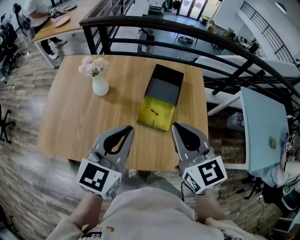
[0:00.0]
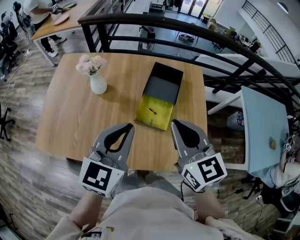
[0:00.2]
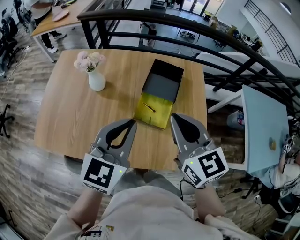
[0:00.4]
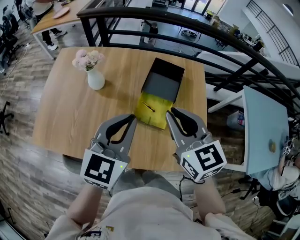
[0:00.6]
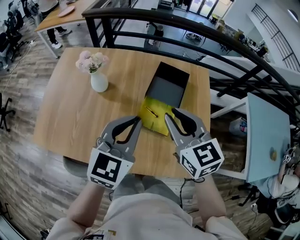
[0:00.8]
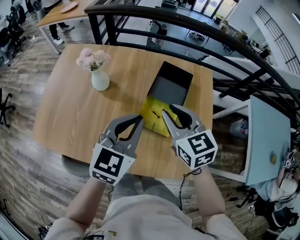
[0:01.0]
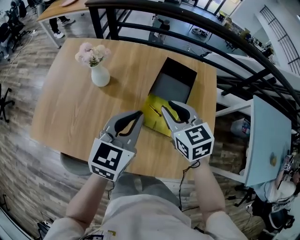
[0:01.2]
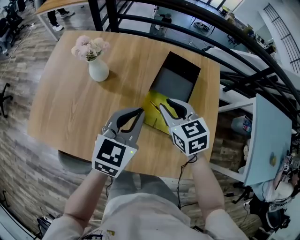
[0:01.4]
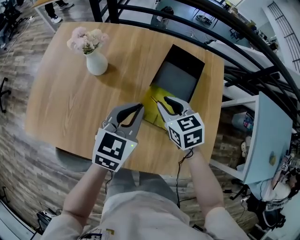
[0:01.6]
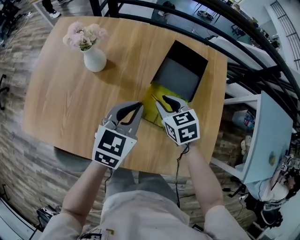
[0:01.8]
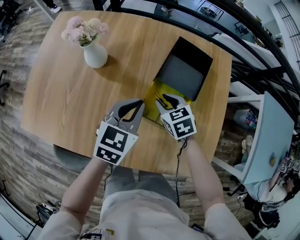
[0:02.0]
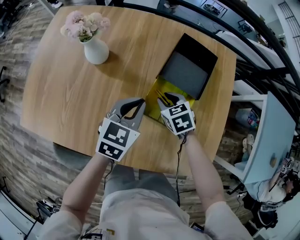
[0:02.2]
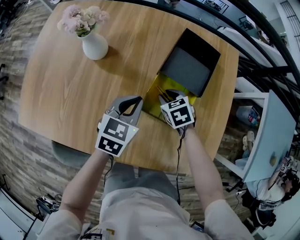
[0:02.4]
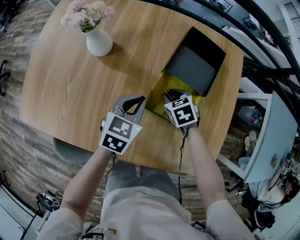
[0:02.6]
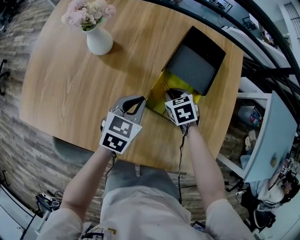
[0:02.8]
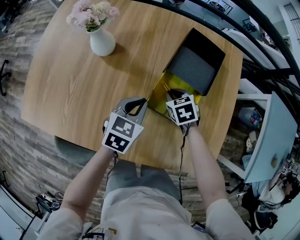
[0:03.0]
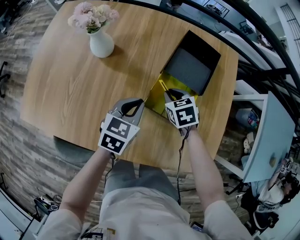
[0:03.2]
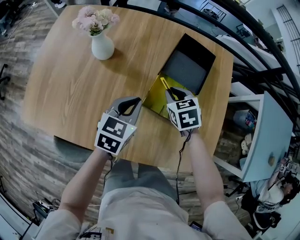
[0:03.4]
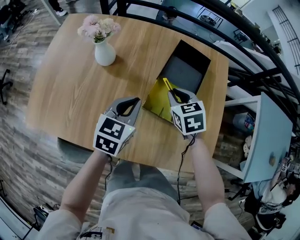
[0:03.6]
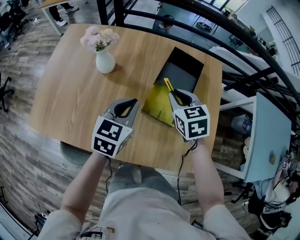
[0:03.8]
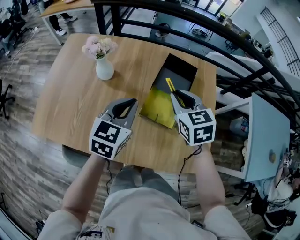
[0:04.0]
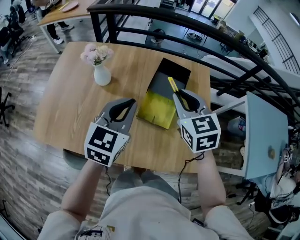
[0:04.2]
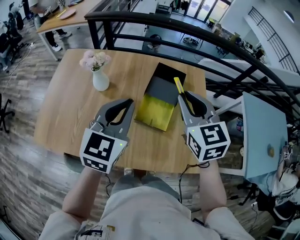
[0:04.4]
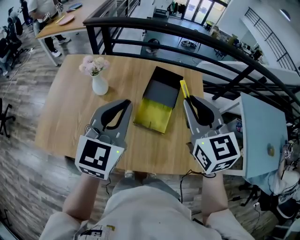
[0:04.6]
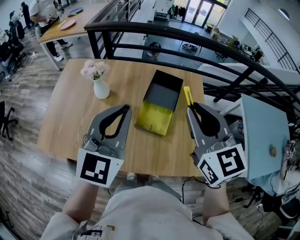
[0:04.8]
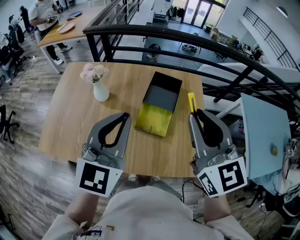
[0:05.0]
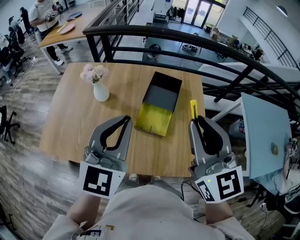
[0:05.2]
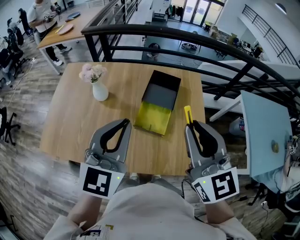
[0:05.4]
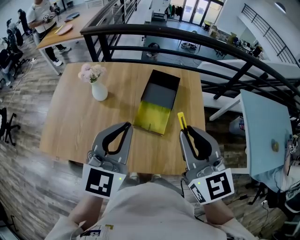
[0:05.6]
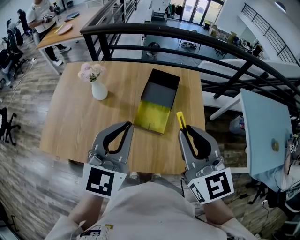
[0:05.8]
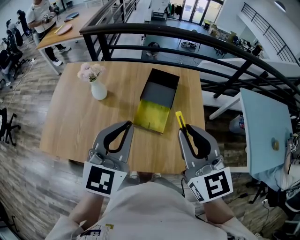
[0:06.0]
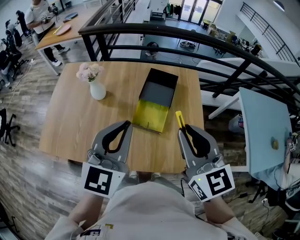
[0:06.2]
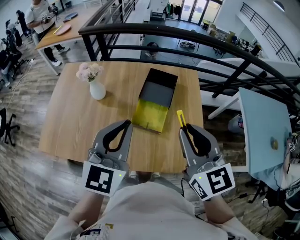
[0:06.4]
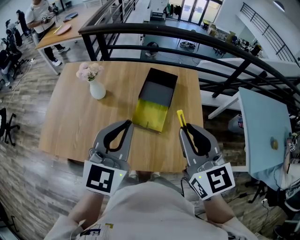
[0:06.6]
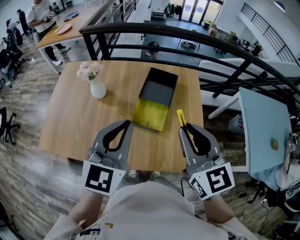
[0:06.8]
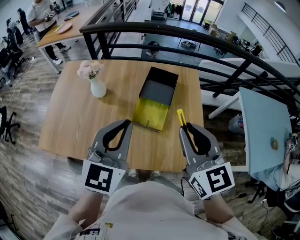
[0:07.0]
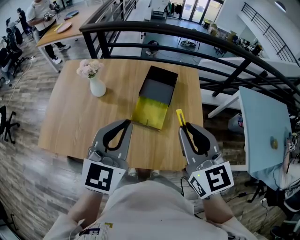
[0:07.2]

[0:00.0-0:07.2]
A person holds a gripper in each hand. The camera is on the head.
0:00.0 to 0:01.4: The left gripper travels forward and downward by some 20 cm, while the right gripper shifts approximately 25 cm downward and forward, swivels approximately 20 degrees, and opens its fingers.
0:01.4 to 0:02.8: The grippers both shift downward by some 20 cm. The left gripper turns by roughly 20 degrees, while the right gripper changes its angle by roughly 30 degrees.
0:02.8 to 0:04.4: Both grippers travel together upward, some 35 cm. The right gripper points its fingers approximately 40 degrees further upward. The left gripper swivels some 30 degrees.
0:04.4 to 0:05.8: The right gripper shifts about 15 cm backward and upward. The left gripper shifts about 10 cm backward.
0:05.8 to 0:07.2: The grippers stay close to where they were, moving slightly.

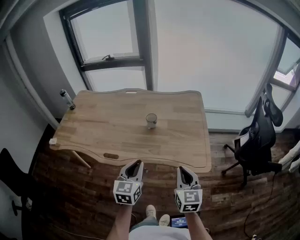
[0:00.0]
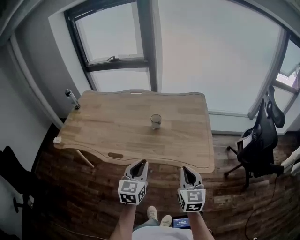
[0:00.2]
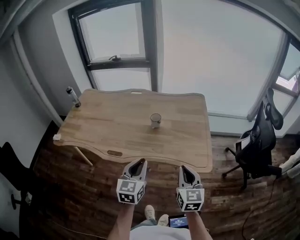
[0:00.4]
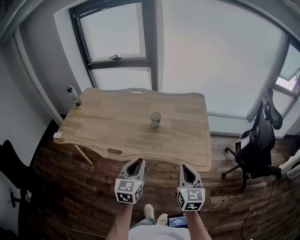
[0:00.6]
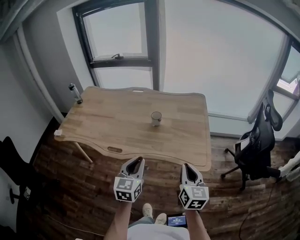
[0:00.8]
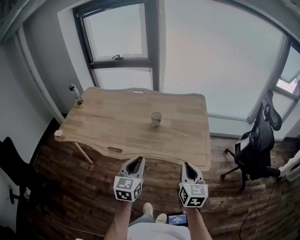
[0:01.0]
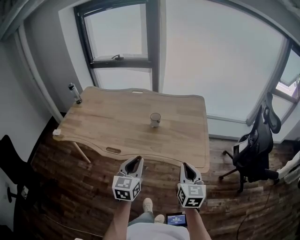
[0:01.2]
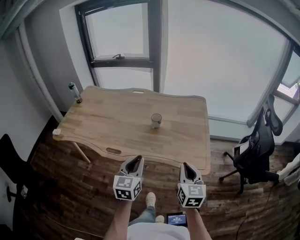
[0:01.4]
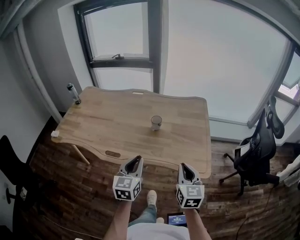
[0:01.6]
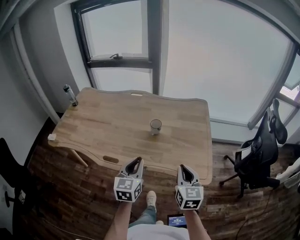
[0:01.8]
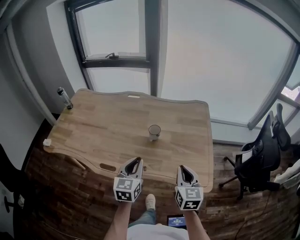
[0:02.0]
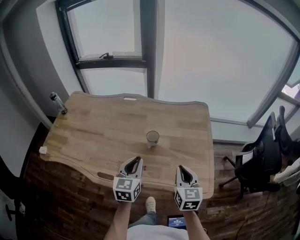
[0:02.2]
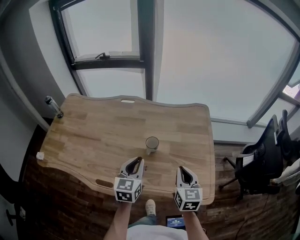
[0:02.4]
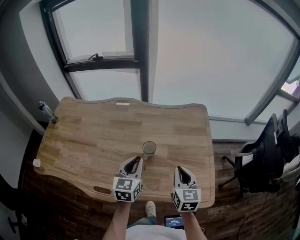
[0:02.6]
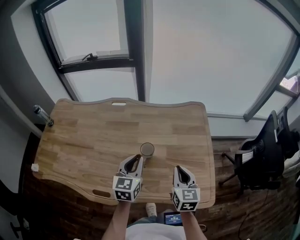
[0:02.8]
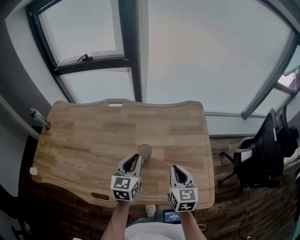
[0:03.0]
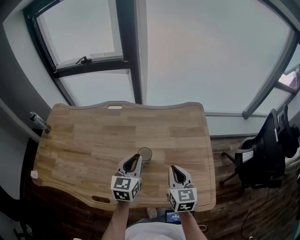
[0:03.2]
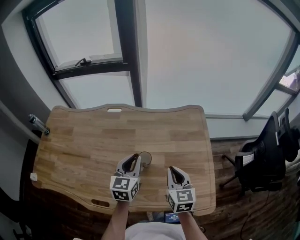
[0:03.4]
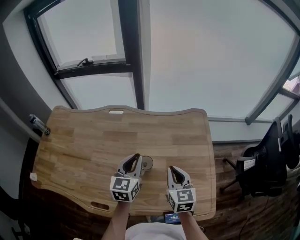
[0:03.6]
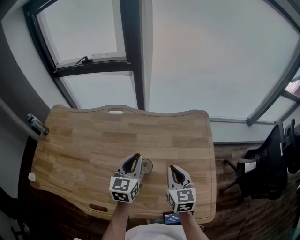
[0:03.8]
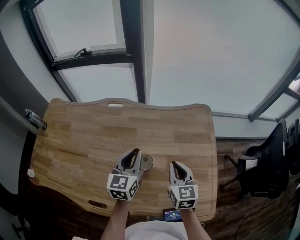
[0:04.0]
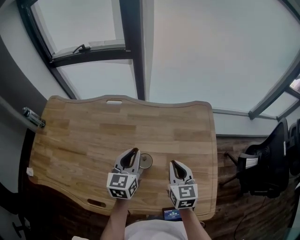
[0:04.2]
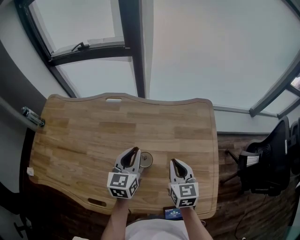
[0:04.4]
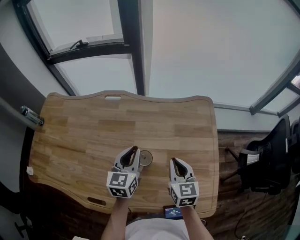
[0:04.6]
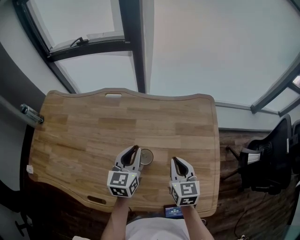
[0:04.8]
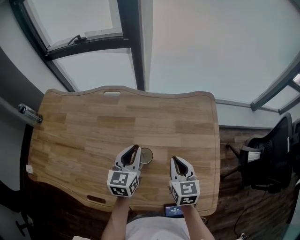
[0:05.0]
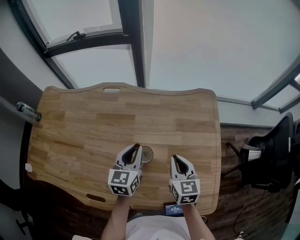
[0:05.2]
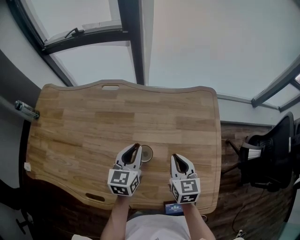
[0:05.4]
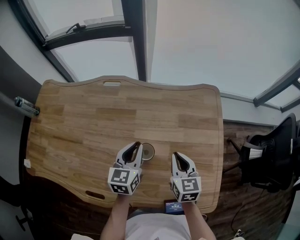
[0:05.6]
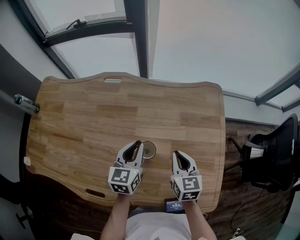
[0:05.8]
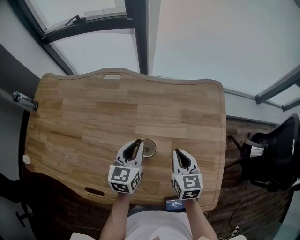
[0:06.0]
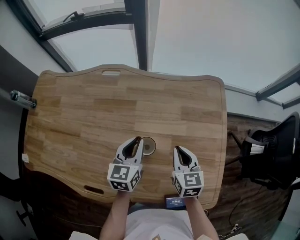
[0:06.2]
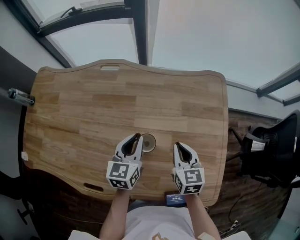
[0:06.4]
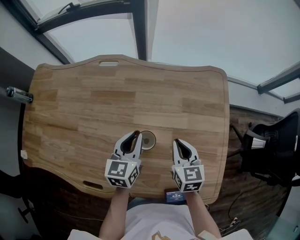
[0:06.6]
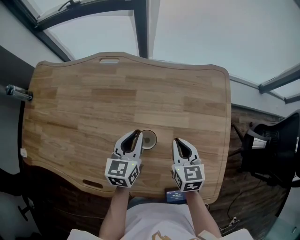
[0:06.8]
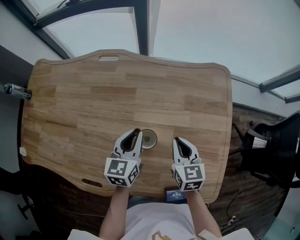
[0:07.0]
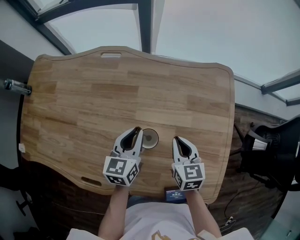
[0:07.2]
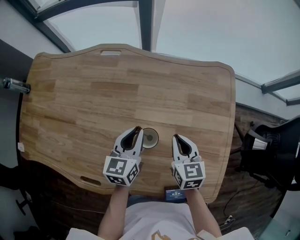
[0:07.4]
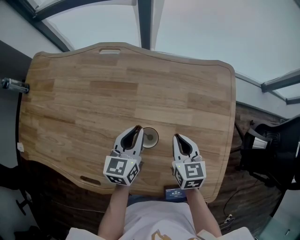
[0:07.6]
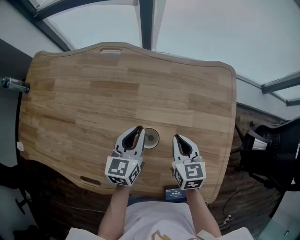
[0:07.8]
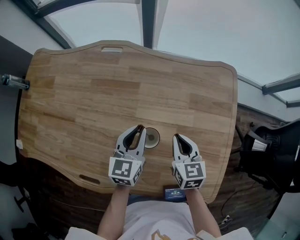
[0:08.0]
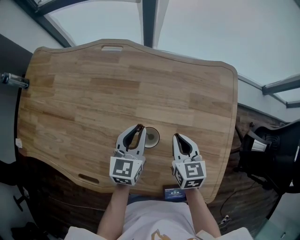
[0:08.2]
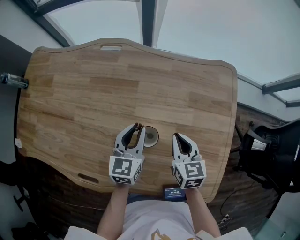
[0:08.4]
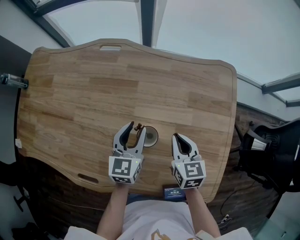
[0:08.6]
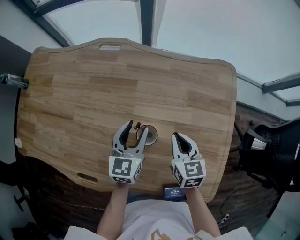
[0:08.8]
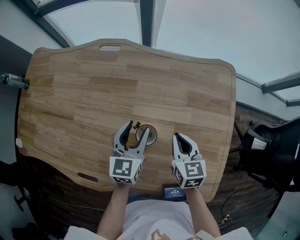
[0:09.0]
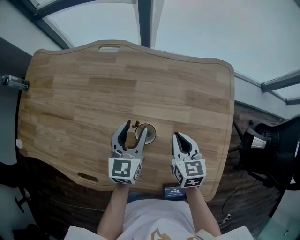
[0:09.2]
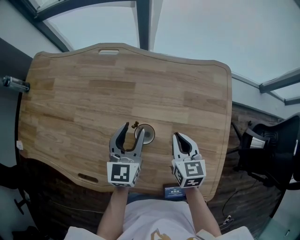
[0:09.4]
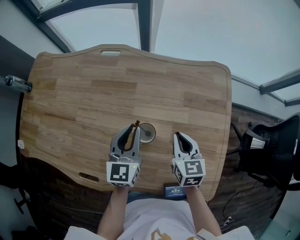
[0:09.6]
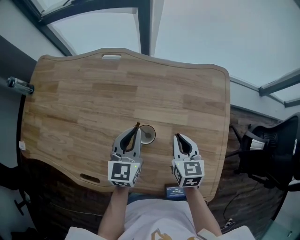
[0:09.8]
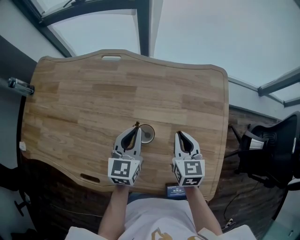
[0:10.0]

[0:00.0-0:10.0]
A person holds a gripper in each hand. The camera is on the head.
0:00.0 to 0:01.4: The grippers stay close to where they were, moving slightly.
0:01.4 to 0:02.8: Both grippers move forward, approximately 30 cm.
0:02.8 to 0:04.2: The two grippers go some 10 cm forward.
0:04.2 to 0:05.8: The two grippers go some 5 cm downward.
0:05.8 to 0:07.2: The grippers make only small movements.
0:07.2 to 0:08.6: The left gripper opens.
0:08.6 to 0:10.0: The left gripper shifts by some 5 cm, and closes, while the right gripper changes place by about 5 cm.

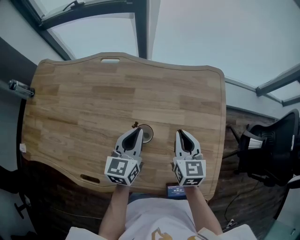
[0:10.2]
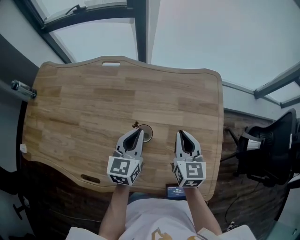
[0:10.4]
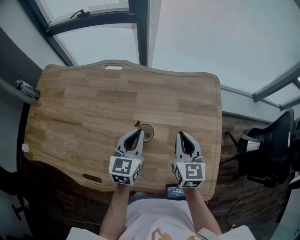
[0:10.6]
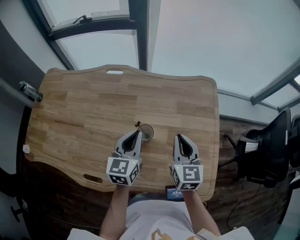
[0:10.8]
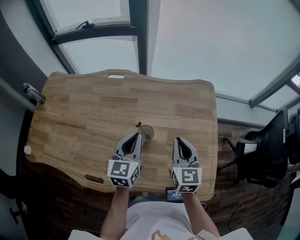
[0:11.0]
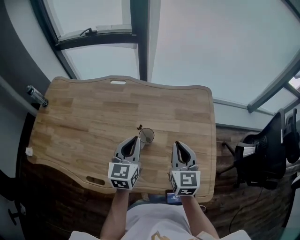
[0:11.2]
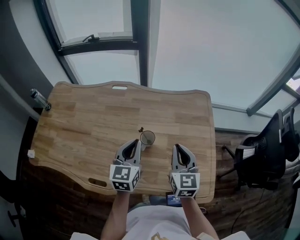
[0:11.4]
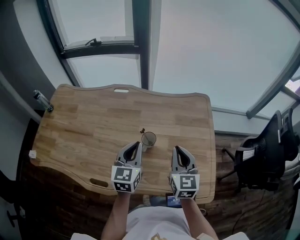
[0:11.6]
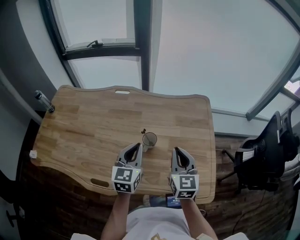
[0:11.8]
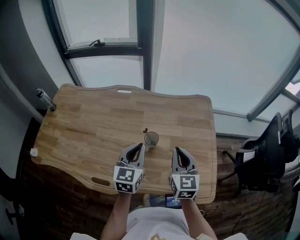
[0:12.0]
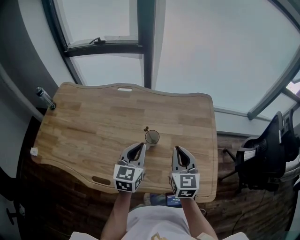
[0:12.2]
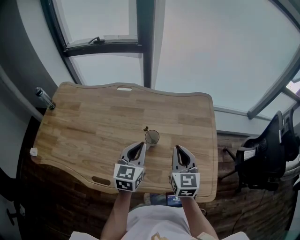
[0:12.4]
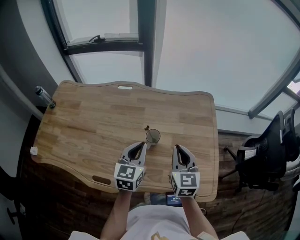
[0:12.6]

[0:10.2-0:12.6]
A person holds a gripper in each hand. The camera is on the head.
0:10.2 to 0:11.4: The grippers both shift upward and backward by roughly 15 cm.
0:11.4 to 0:12.6: The grippers make only small movements.

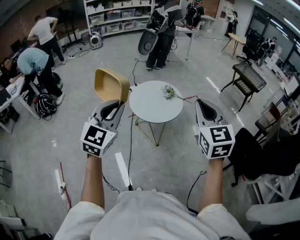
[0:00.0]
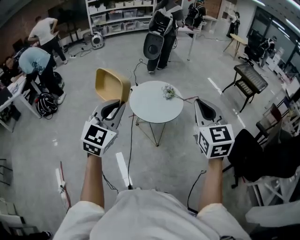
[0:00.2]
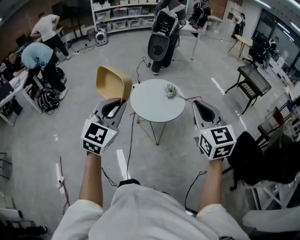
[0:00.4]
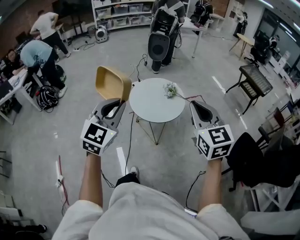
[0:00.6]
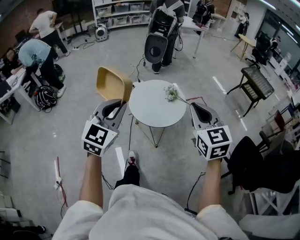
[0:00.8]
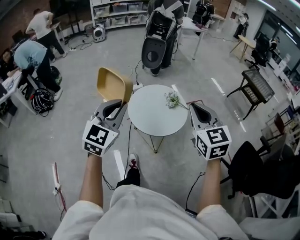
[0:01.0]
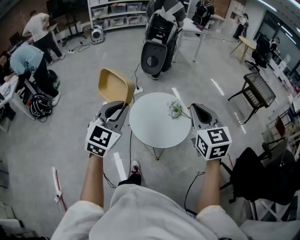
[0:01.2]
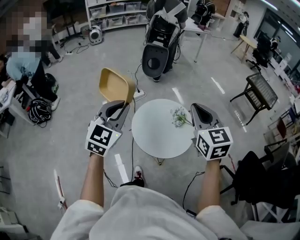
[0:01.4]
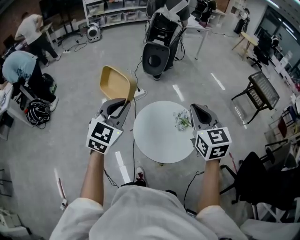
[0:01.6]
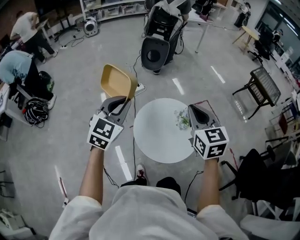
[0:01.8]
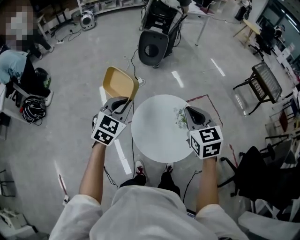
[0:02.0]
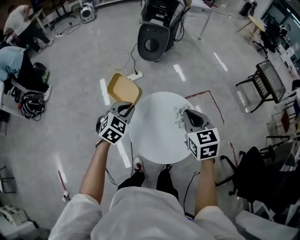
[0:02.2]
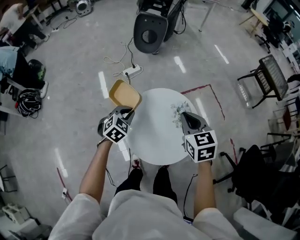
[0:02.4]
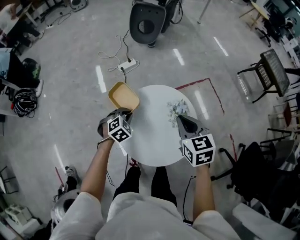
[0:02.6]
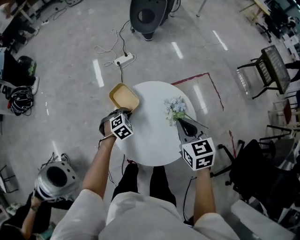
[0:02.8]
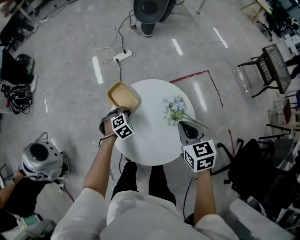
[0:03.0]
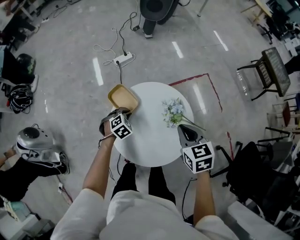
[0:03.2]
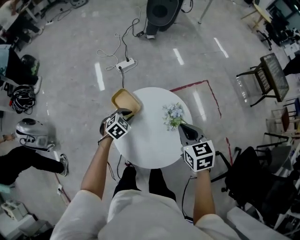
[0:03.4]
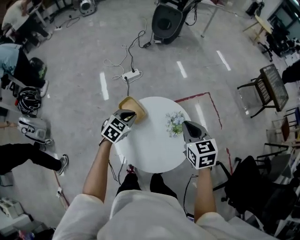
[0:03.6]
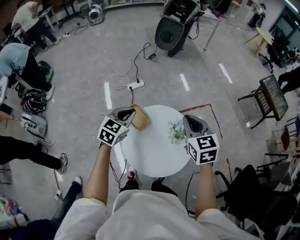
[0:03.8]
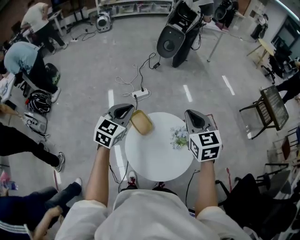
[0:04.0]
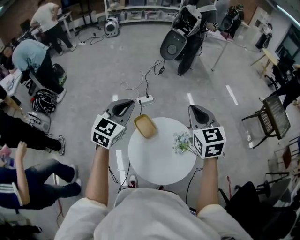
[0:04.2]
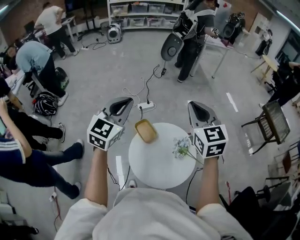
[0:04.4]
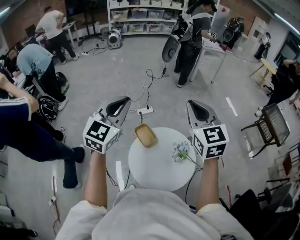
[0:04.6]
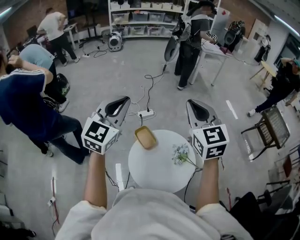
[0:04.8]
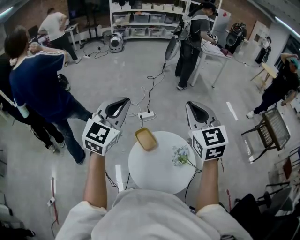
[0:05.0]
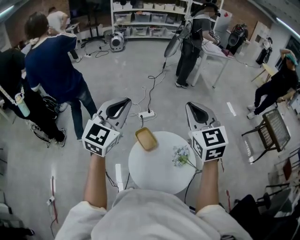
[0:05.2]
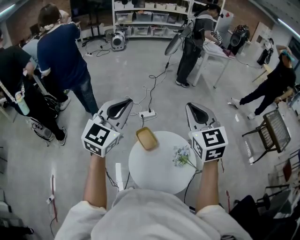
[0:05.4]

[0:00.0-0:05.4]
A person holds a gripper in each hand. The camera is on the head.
0:00.0 to 0:01.4: Both grippers move forward, about 40 cm.
0:01.4 to 0:02.8: The left gripper moves downward and forward, about 50 cm, and tilts its fingers approximately 50 degrees downward, while the right gripper goes some 35 cm downward and forward, and changes its angle by roughly 30 degrees.
0:02.8 to 0:04.0: The left gripper is displaced upward by about 35 cm, and tips its fingers upward by about 40 degrees, while the right gripper travels upward by some 20 cm, and swivels some 20 degrees.
0:04.0 to 0:05.4: The left gripper shifts roughly 20 cm upward, and turns by about 20 degrees. The right gripper heads upward and to the left, covering approximately 15 cm.
